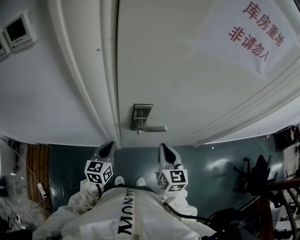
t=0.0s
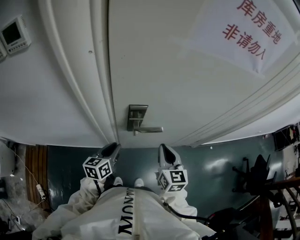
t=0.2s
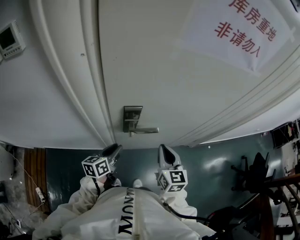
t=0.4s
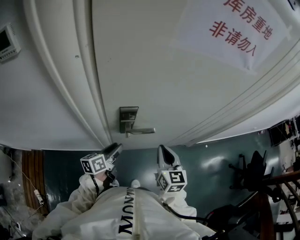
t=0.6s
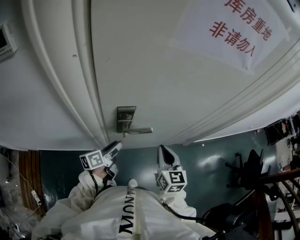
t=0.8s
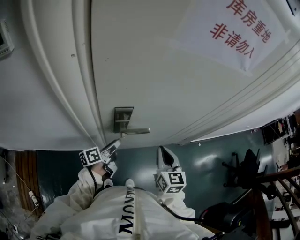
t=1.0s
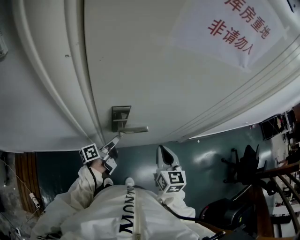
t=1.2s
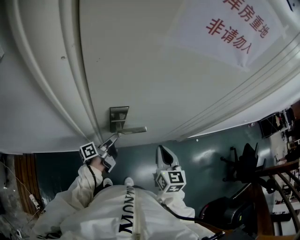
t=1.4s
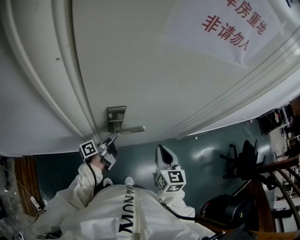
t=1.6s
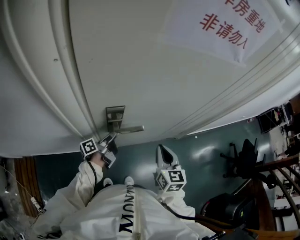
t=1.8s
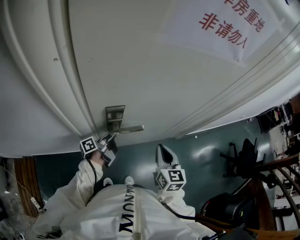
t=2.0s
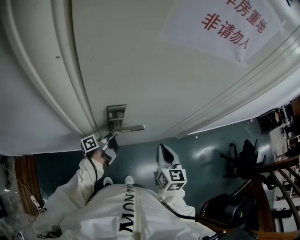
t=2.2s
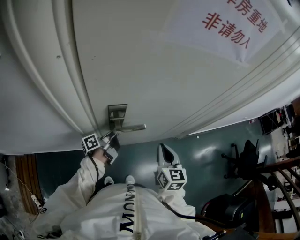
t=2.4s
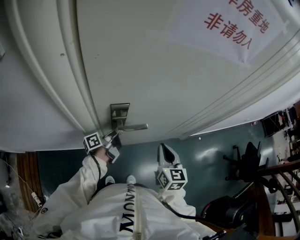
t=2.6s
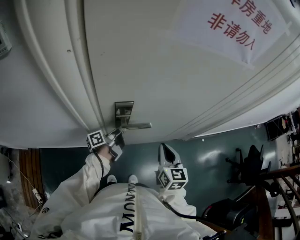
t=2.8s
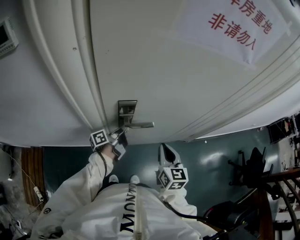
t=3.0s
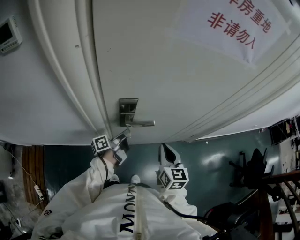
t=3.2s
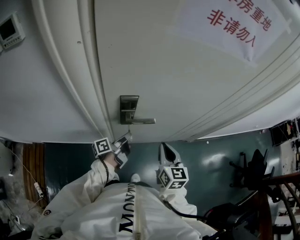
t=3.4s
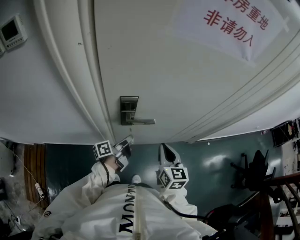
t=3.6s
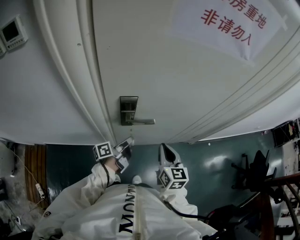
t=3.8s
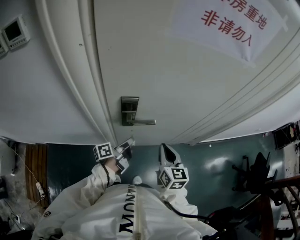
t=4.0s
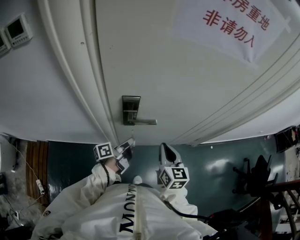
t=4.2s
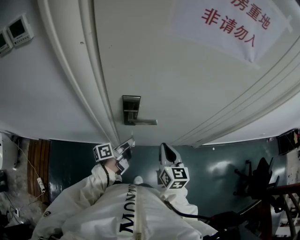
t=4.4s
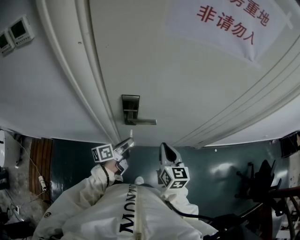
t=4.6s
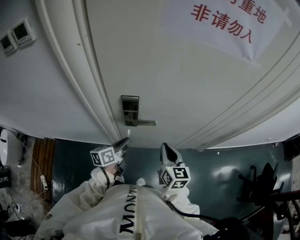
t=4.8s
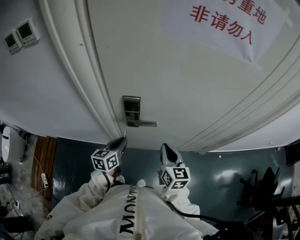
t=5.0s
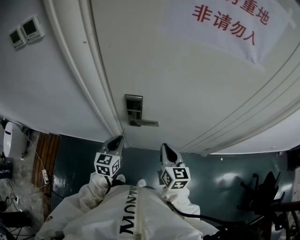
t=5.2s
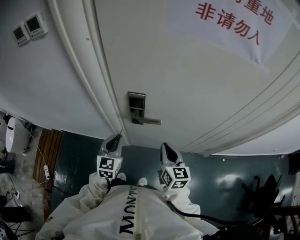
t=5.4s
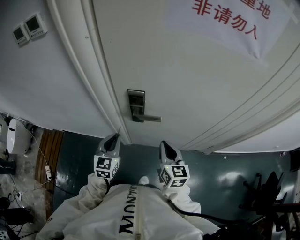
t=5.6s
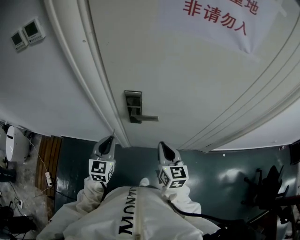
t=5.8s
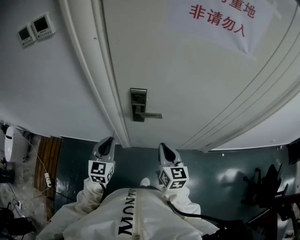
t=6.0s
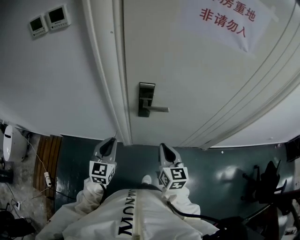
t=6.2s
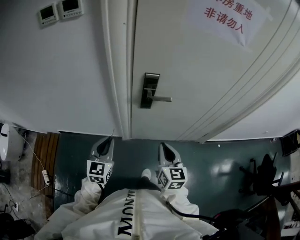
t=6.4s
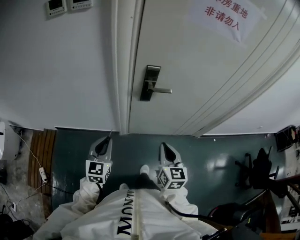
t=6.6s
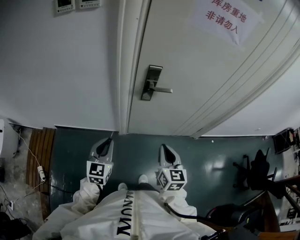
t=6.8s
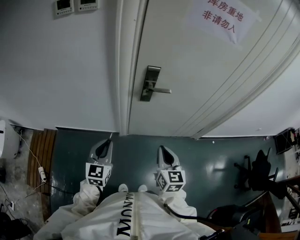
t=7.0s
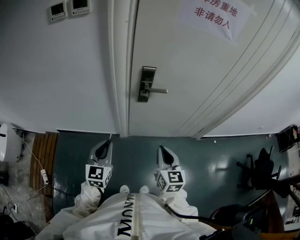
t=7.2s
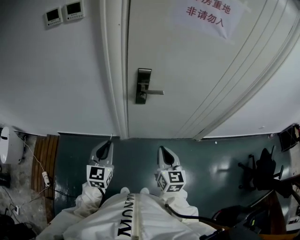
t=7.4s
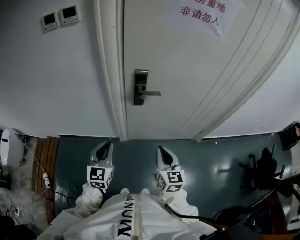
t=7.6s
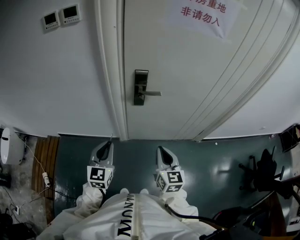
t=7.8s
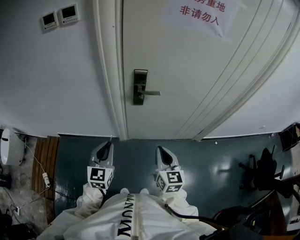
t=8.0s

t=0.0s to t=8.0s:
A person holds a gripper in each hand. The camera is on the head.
t=0.0s to t=1.6s: The left gripper goes about 15 cm forward, to the right and downward, rolls counterclockwise, seen from behind, by some 70 degrees, and opens up, while the right gripper shifts roughly 5 cm to the right.
t=1.6s to t=3.2s: The left gripper closes.
t=3.2s to t=4.8s: The left gripper heads backward, covering roughly 5 cm, and rotates some 40 degrees.
t=4.8s to t=6.4s: The right gripper shifts some 15 cm backward and to the left; the left gripper heads to the left, backward and upward, covering roughly 25 cm, and rotates around the line of its fingers by approximately 50 degrees, clockwise from behind.
t=6.4s to t=8.0s: Both grippers move backward, some 5 cm.

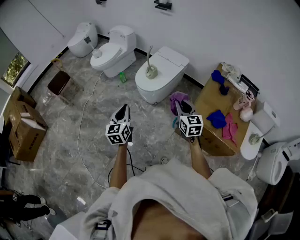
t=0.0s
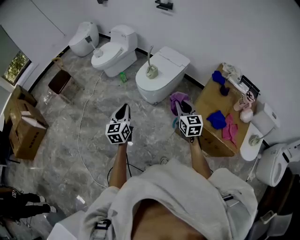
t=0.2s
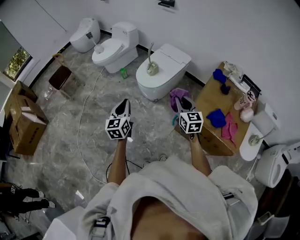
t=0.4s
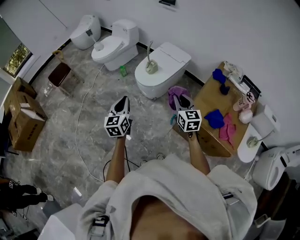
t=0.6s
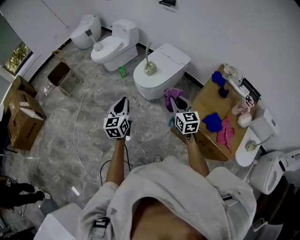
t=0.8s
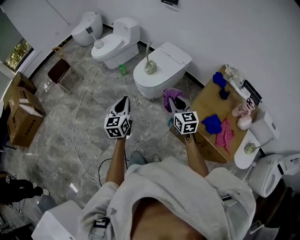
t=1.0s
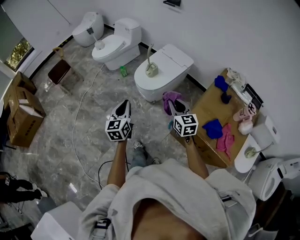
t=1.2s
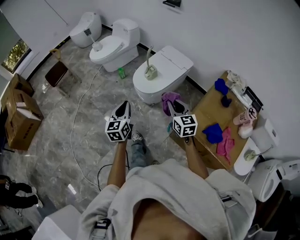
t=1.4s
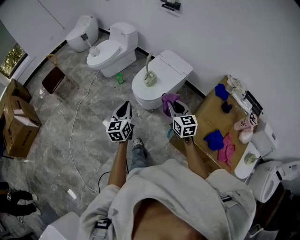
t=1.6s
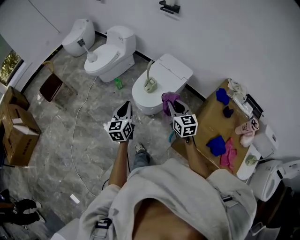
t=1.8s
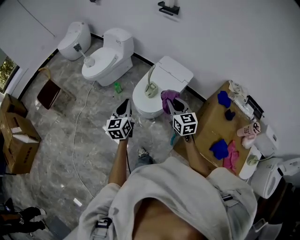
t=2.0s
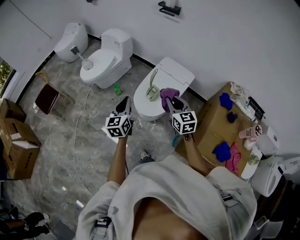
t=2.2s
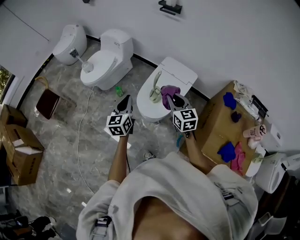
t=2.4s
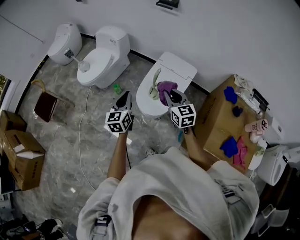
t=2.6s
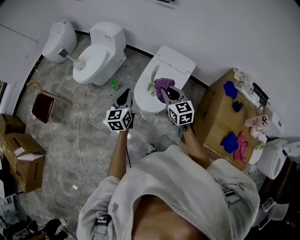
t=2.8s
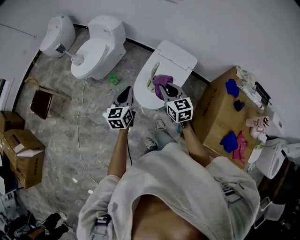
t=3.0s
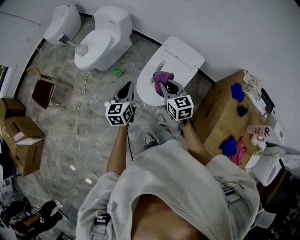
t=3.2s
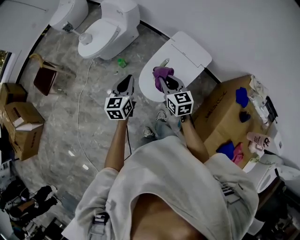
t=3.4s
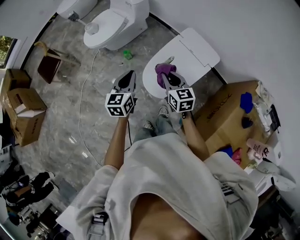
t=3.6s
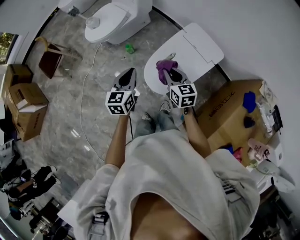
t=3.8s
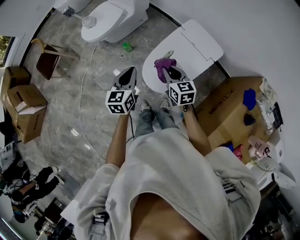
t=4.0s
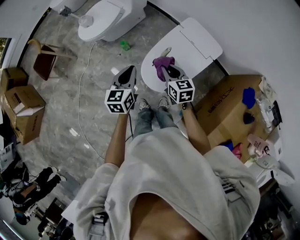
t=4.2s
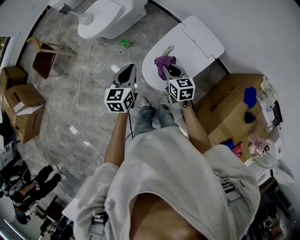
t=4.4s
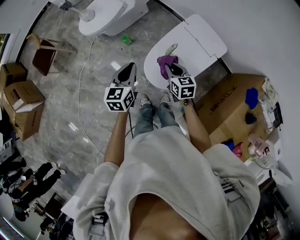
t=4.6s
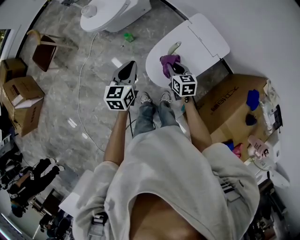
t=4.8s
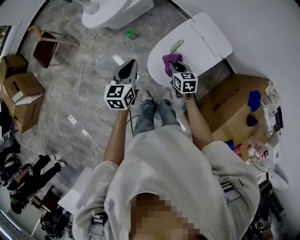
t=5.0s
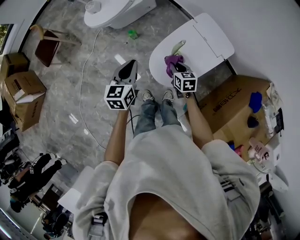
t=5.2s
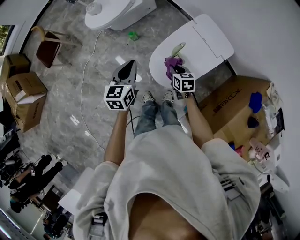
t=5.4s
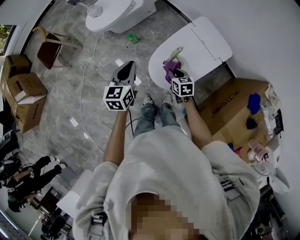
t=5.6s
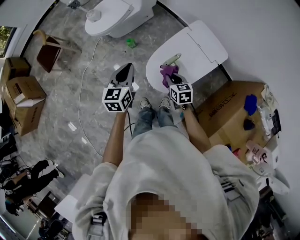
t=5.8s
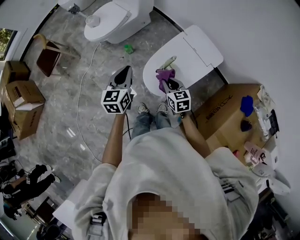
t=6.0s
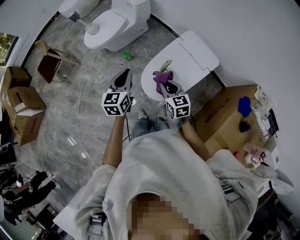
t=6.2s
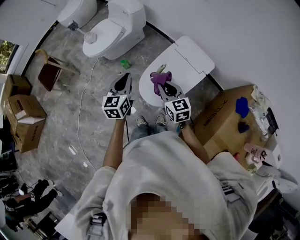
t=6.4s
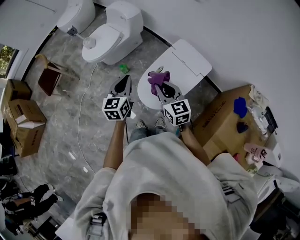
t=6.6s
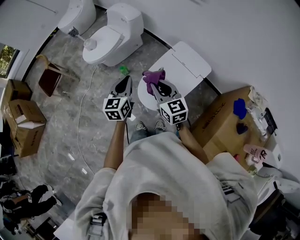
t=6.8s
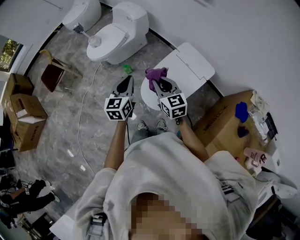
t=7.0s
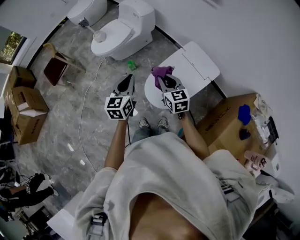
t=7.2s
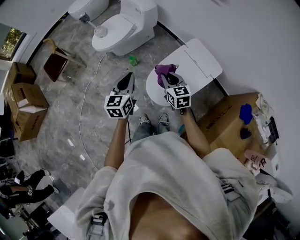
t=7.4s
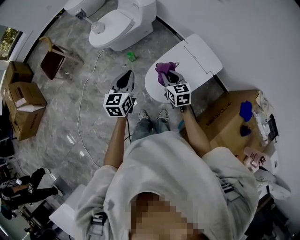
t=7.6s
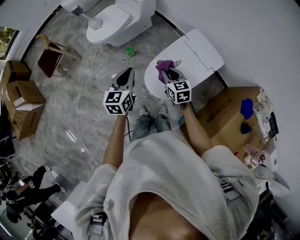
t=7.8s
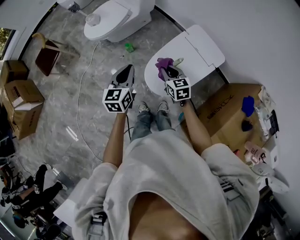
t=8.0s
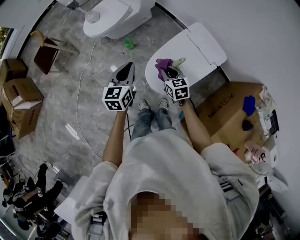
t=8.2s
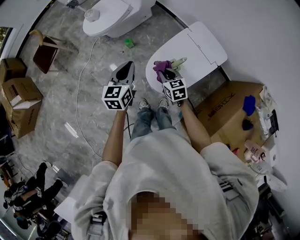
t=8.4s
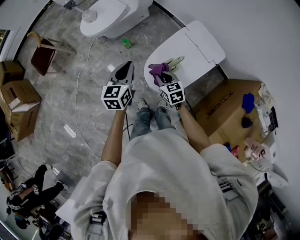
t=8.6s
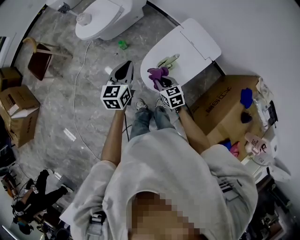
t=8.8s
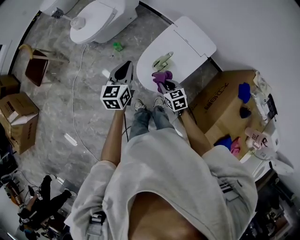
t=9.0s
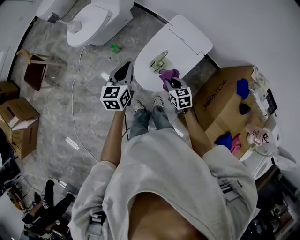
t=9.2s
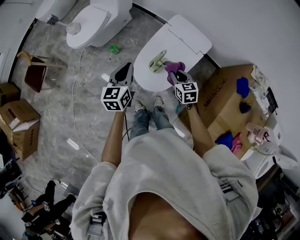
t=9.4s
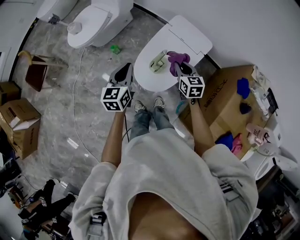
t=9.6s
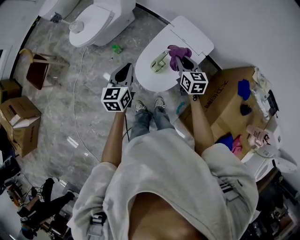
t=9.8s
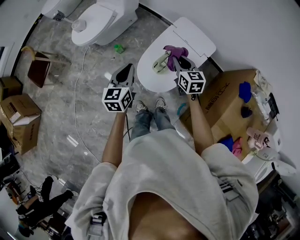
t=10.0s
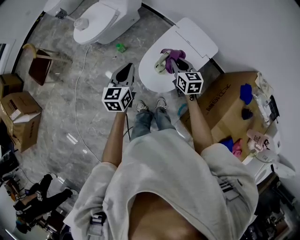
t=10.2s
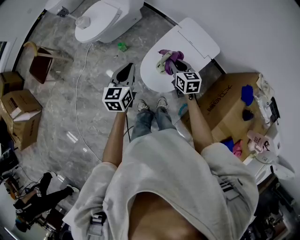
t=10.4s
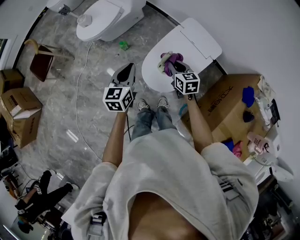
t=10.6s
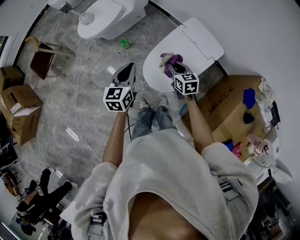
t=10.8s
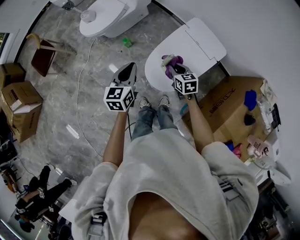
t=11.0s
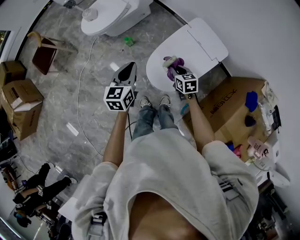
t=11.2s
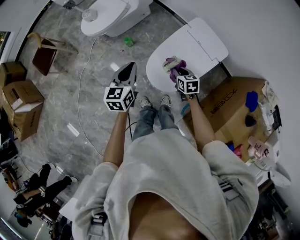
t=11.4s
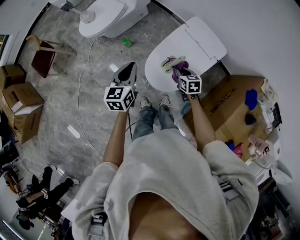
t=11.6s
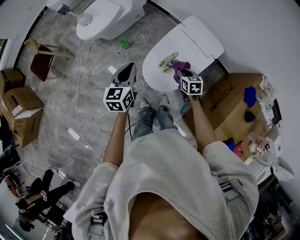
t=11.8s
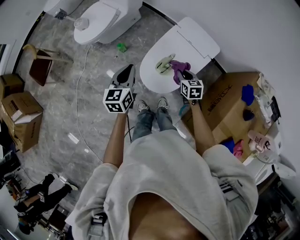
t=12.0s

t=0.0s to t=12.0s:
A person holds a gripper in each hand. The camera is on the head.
t=0.0s to t=1.6s: The two grippers go roughly 15 cm forward.
t=1.6s to t=3.0s: The right gripper is displaced forward and to the left by about 25 cm, while the left gripper moves forward, roughly 25 cm.
t=3.0s to t=4.4s: The left gripper travels forward by roughly 5 cm. The right gripper shifts approximately 15 cm downward and forward, and changes its angle by approximately 20 degrees.
t=4.4s to t=6.0s: The right gripper moves some 10 cm downward and comes back.
t=6.0s to t=7.6s: The right gripper is displaced forward by some 5 cm, and goes upward and returns, about 15 cm each way.
t=7.6s to t=9.0s: The right gripper shifts some 15 cm downward and backward. The left gripper shifts by approximately 5 cm.
t=9.0s to t=10.4s: The right gripper moves forward and upward, approximately 15 cm.
t=10.4s to t=12.0s: The right gripper is displaced downward and to the right by about 10 cm.

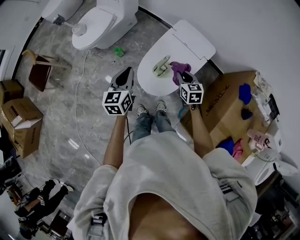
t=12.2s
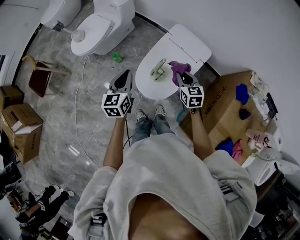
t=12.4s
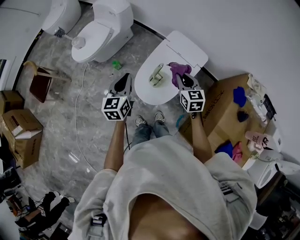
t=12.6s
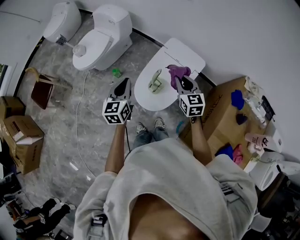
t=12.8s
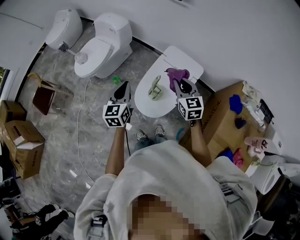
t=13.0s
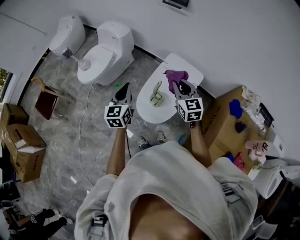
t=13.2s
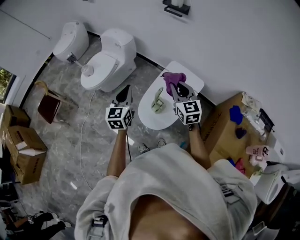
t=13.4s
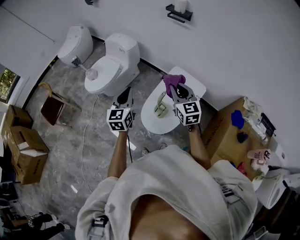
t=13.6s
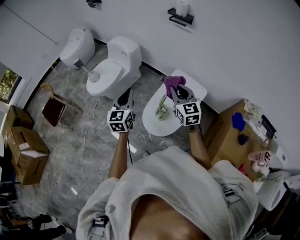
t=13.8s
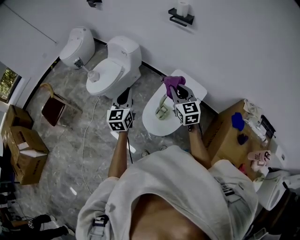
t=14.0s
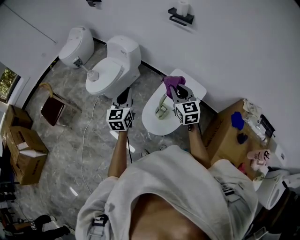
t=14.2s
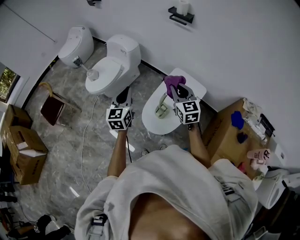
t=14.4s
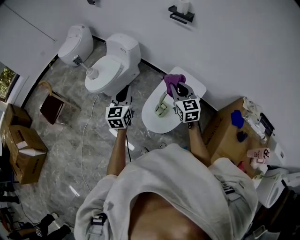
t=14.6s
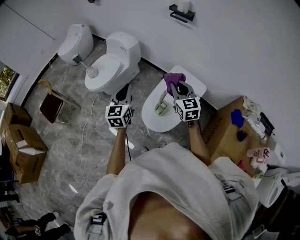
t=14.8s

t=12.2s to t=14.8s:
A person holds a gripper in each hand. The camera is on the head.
t=12.2s to t=13.4s: The right gripper goes some 25 cm upward, and changes its angle by roughly 30 degrees, while the left gripper moves upward, approximately 10 cm.
t=13.4s to t=14.8s: The grippers make only small movements.

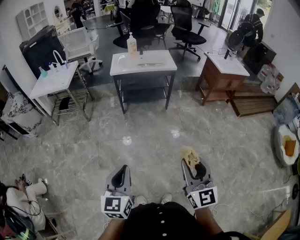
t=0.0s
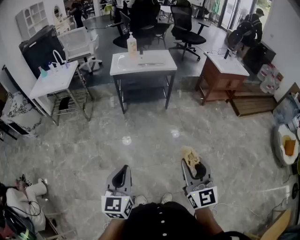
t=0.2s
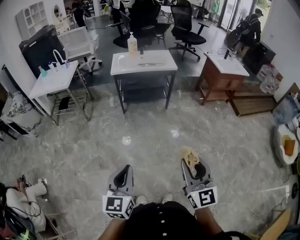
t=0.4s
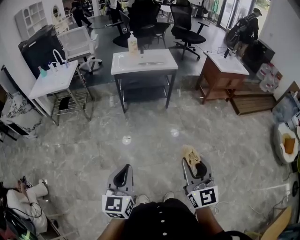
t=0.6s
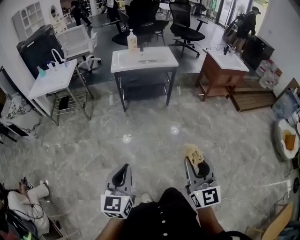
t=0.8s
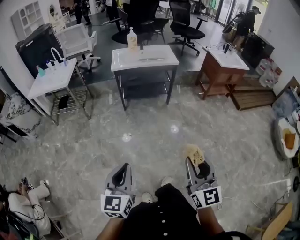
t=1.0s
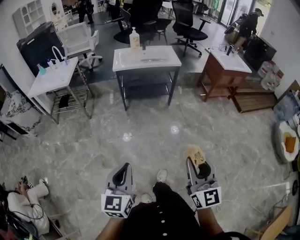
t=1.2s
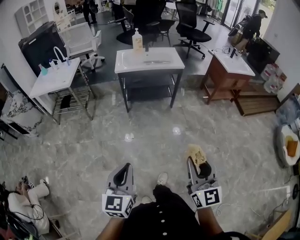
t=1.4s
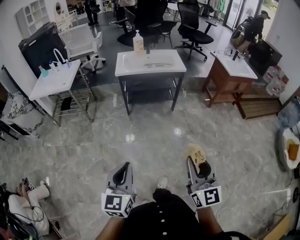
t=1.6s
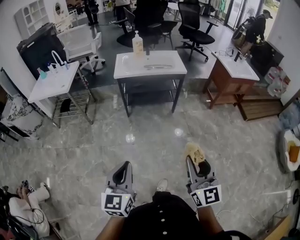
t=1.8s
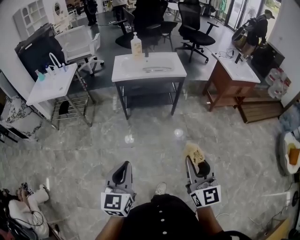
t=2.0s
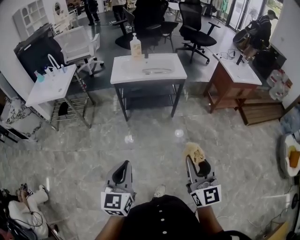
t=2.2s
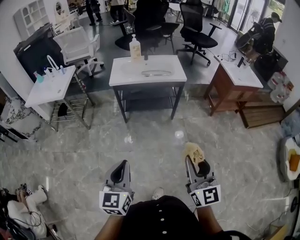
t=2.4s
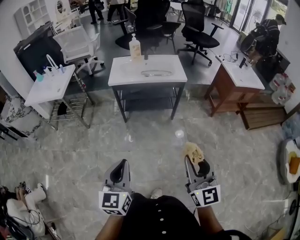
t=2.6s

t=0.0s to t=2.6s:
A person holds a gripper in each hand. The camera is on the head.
t=0.0s to t=1.2s: The left gripper moves to the left, roughly 5 cm.
t=1.2s to t=2.6s: Both grippers move forward, approximately 25 cm.
